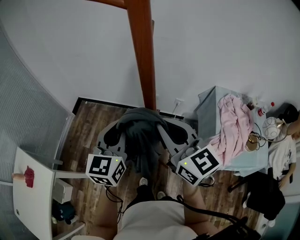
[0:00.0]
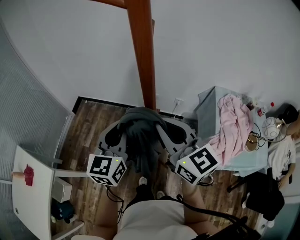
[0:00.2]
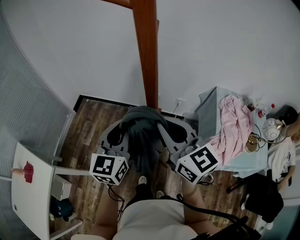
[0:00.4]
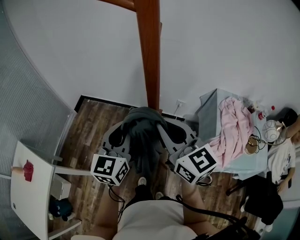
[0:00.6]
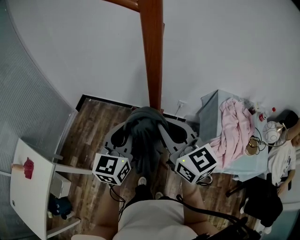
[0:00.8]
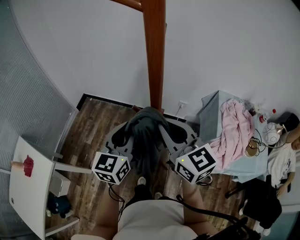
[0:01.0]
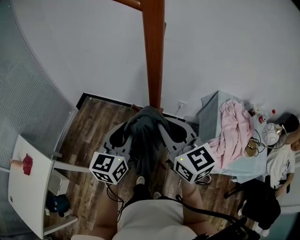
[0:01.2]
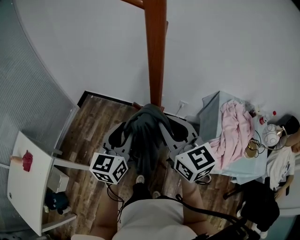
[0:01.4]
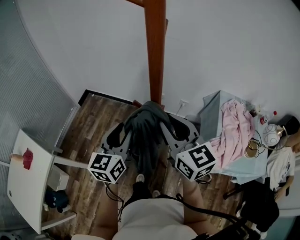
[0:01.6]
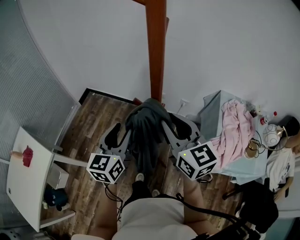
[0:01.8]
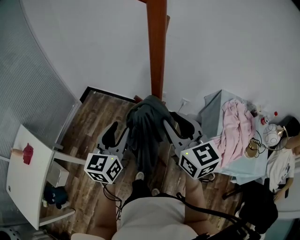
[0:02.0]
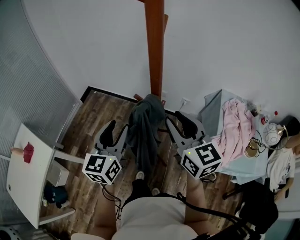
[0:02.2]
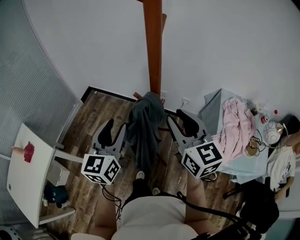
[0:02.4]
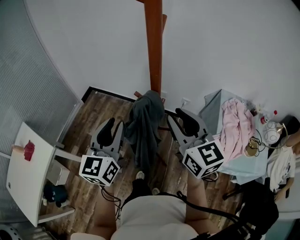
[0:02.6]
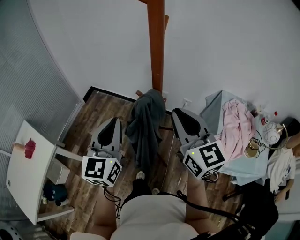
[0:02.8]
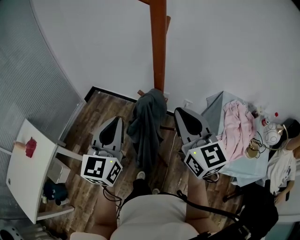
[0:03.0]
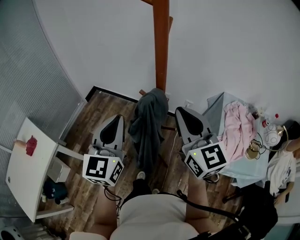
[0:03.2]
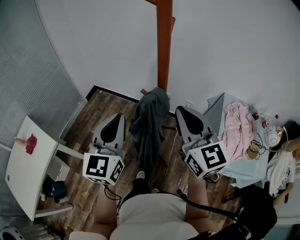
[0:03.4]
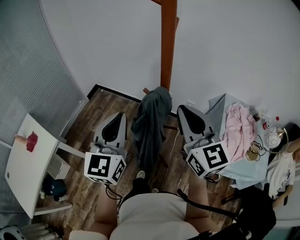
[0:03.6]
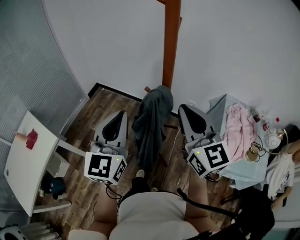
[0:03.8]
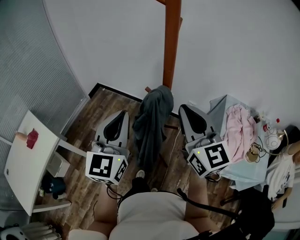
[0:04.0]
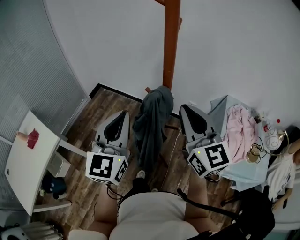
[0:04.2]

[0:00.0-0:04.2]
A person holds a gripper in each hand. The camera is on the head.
0:00.0 to 0:01.4: The left gripper opens up.
0:01.4 to 0:02.8: The left gripper heads upward, covering approximately 5 cm, and closes.
0:02.8 to 0:04.2: The grippers make only small movements.

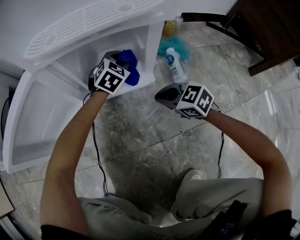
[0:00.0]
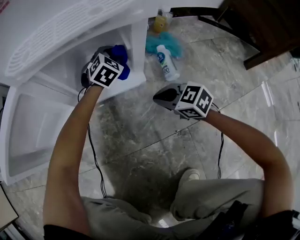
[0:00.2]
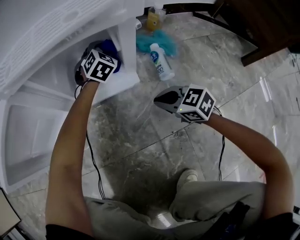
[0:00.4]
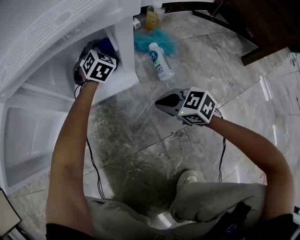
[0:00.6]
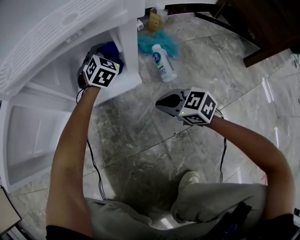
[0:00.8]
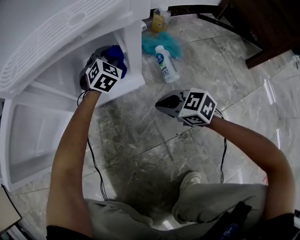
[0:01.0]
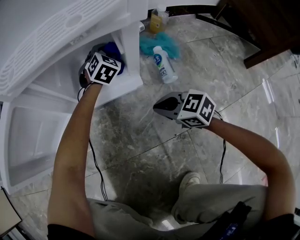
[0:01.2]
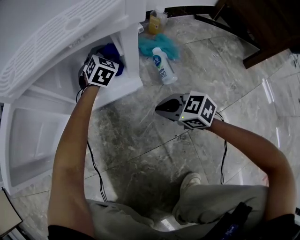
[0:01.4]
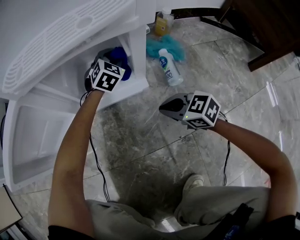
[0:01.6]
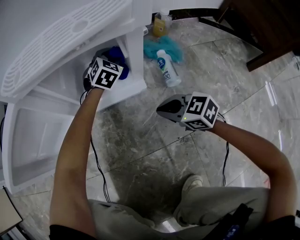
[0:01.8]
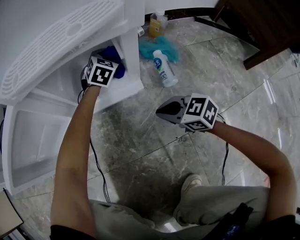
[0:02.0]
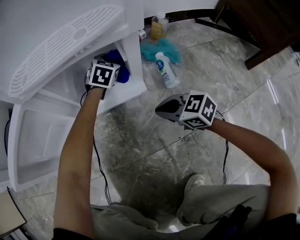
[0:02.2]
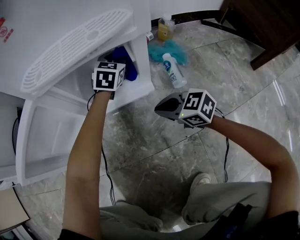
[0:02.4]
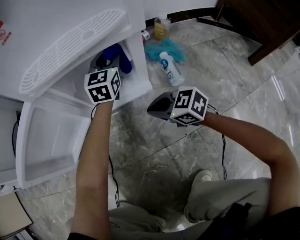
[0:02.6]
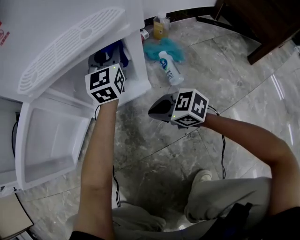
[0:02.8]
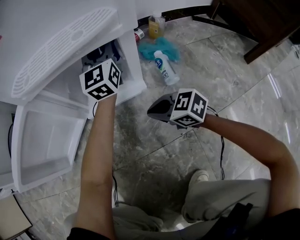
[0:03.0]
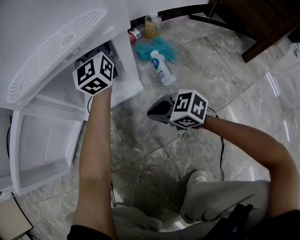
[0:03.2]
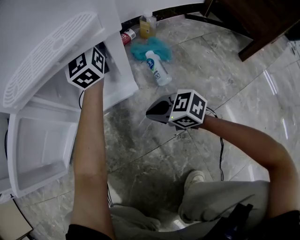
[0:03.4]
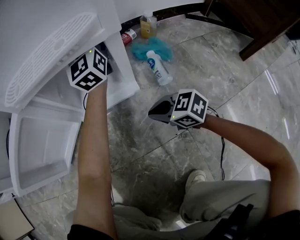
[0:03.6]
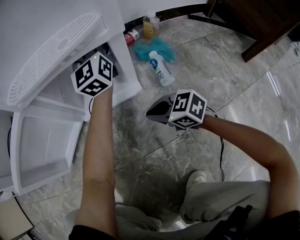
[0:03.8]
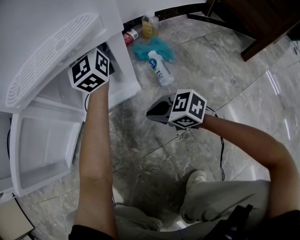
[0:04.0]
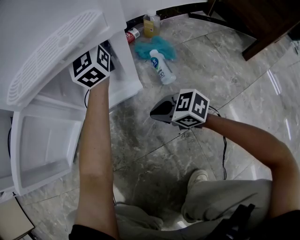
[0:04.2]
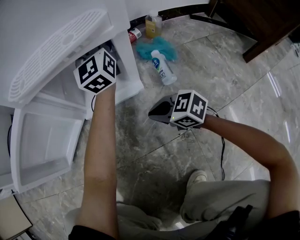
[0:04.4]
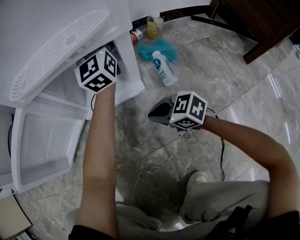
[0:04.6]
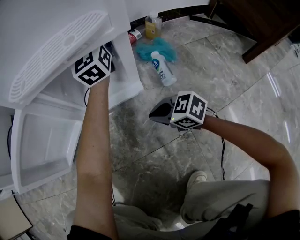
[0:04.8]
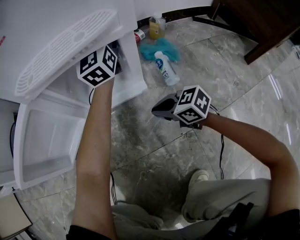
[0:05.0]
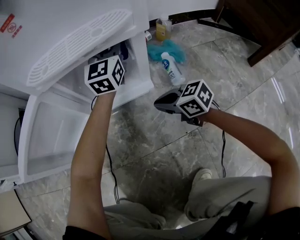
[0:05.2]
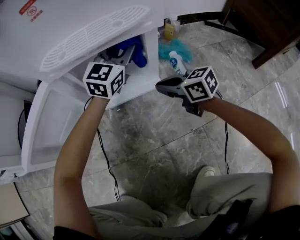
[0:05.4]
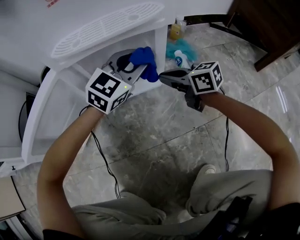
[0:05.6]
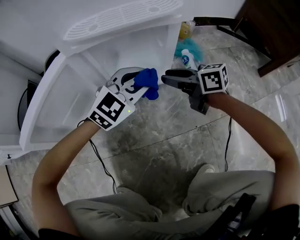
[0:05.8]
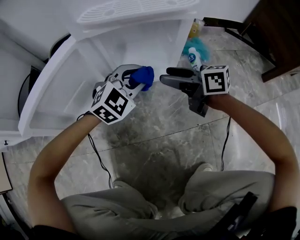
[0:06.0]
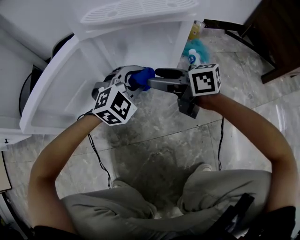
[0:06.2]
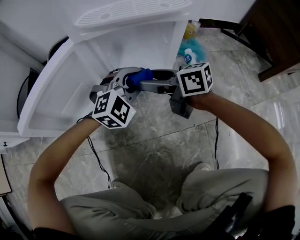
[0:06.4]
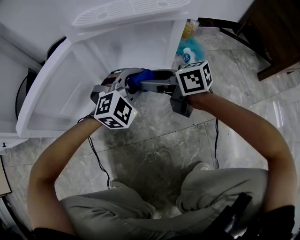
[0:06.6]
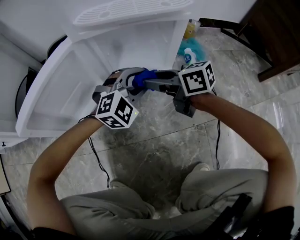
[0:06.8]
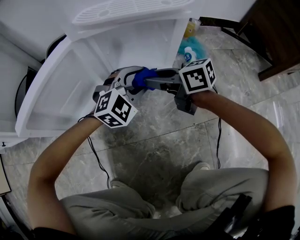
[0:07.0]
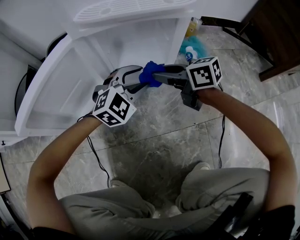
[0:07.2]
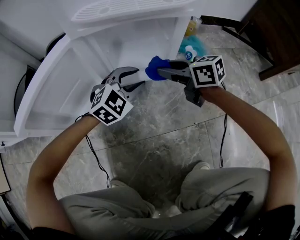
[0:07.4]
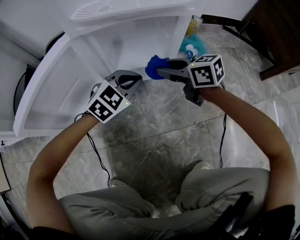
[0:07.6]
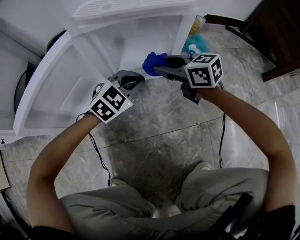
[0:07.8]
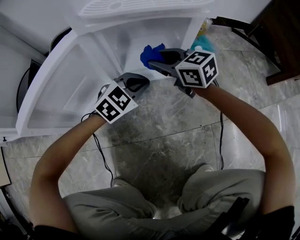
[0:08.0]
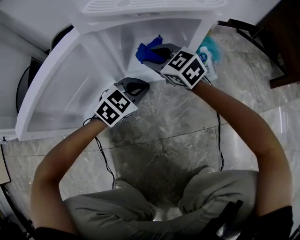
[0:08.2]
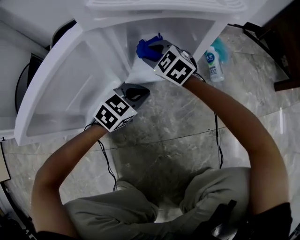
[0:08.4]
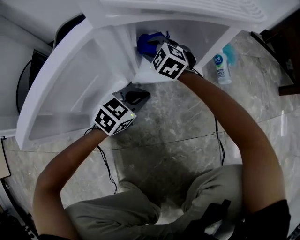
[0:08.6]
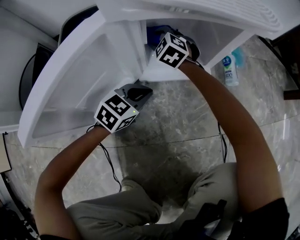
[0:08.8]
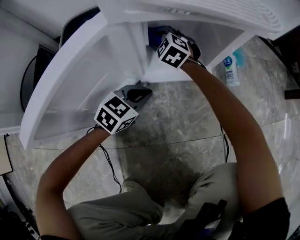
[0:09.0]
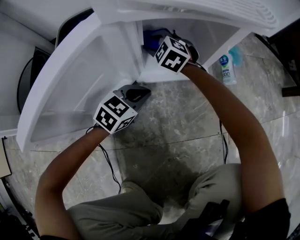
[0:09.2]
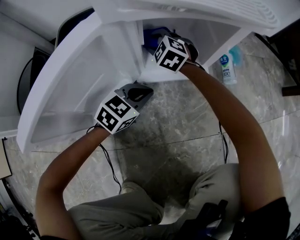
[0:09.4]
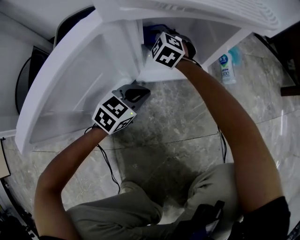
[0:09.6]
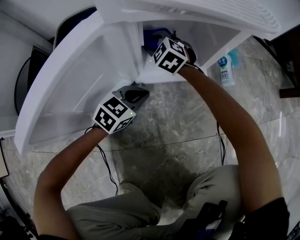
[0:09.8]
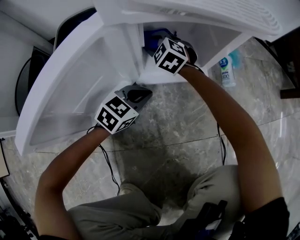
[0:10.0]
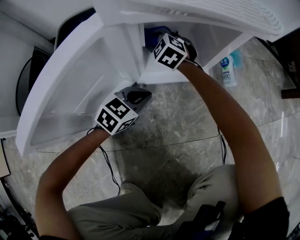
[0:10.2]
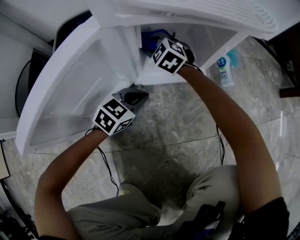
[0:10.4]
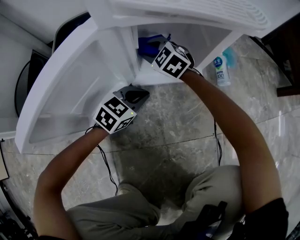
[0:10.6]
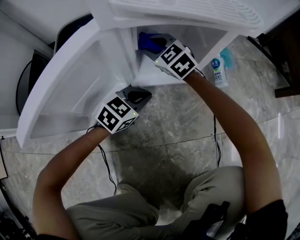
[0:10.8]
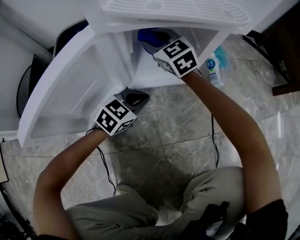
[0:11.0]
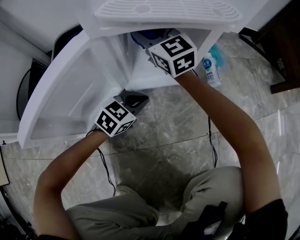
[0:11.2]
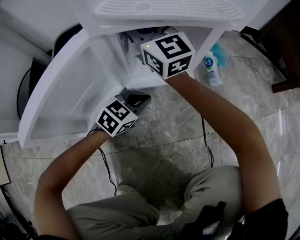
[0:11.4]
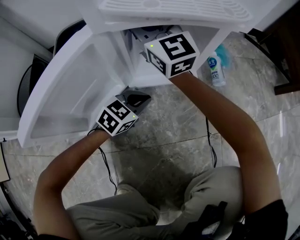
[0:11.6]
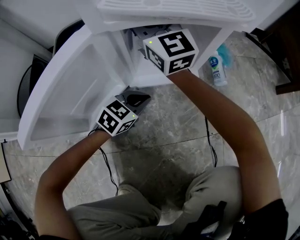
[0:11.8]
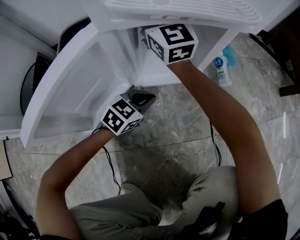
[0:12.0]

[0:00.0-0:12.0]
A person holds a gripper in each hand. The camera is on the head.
0:00.0 to 0:01.6: The left gripper heads forward, covering about 5 cm.
0:01.6 to 0:03.0: The left gripper is displaced upward by approximately 20 cm, and tips its fingers upward by roughly 40 degrees.
0:03.0 to 0:04.4: The grippers move only a little.
0:04.4 to 0:06.0: The right gripper moves upward, roughly 10 cm, swivels roughly 30 degrees, and opens up. Meanwhile the left gripper shifts by roughly 25 cm, and tips its fingers downward by approximately 40 degrees.
0:06.0 to 0:07.6: The right gripper closes its fingers. Meanwhile the left gripper closes up.
0:07.6 to 0:09.0: The right gripper travels to the left, forward and downward by about 25 cm, and rotates around the line of its fingers by about 50 degrees, counterclockwise from behind, while the left gripper goes roughly 10 cm to the left and downward, and rotates approximately 30 degrees.
0:09.0 to 0:10.4: The grippers make only small movements.
0:10.4 to 0:12.0: The right gripper goes roughly 25 cm upward, and tilts its fingers approximately 50 degrees upward.

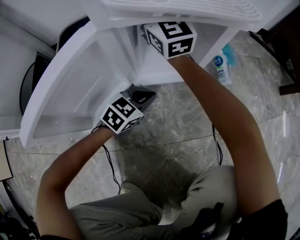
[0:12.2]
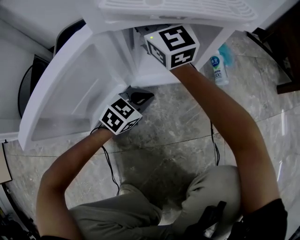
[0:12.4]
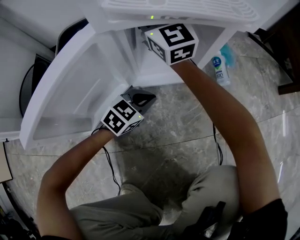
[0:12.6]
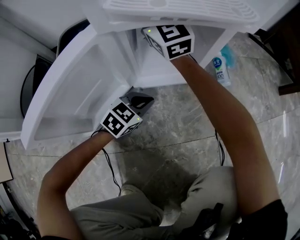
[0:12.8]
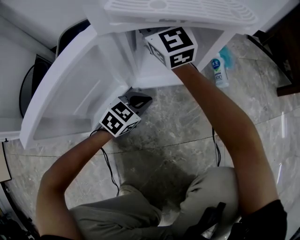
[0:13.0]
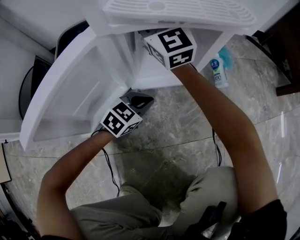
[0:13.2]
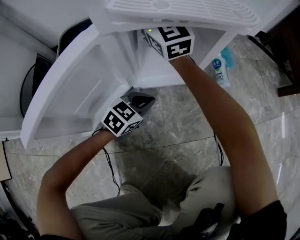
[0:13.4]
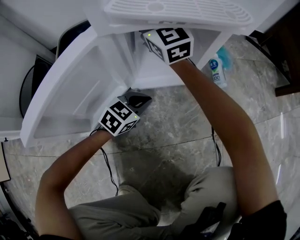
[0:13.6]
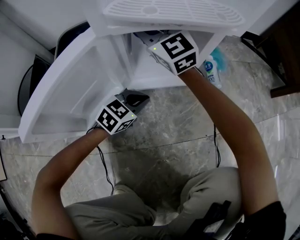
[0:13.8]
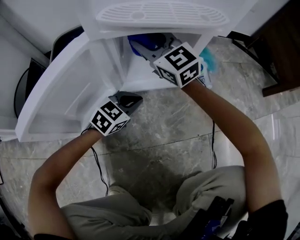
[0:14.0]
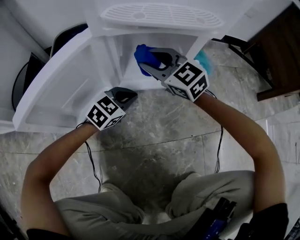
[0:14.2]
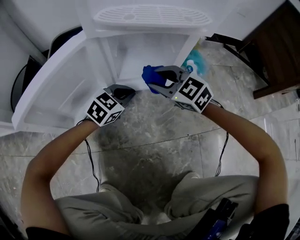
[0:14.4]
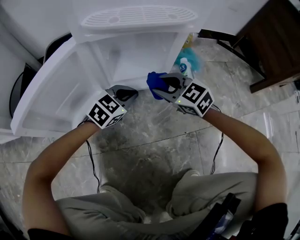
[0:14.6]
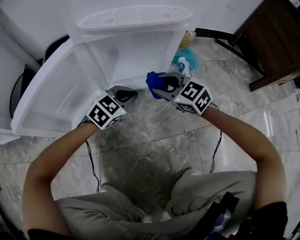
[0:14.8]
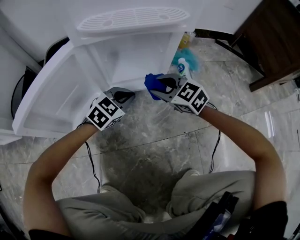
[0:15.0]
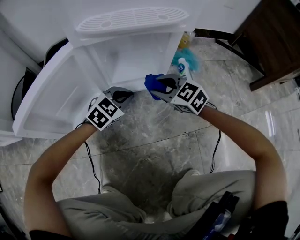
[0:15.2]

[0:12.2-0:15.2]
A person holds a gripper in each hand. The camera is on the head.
0:12.2 to 0:13.8: The grippers stay close to where they were, moving slightly.
0:13.8 to 0:15.2: The right gripper goes roughly 25 cm to the right, backward and downward, and tips its fingers downward by some 30 degrees.

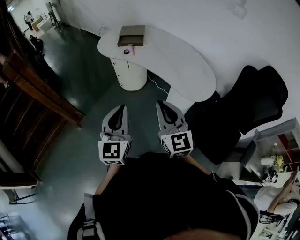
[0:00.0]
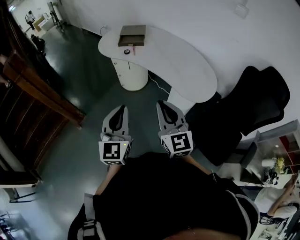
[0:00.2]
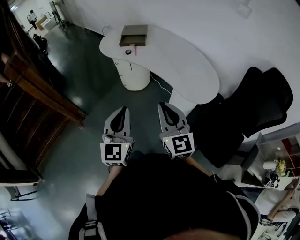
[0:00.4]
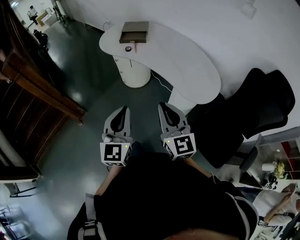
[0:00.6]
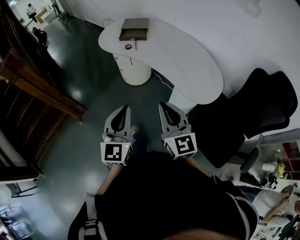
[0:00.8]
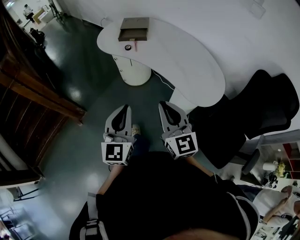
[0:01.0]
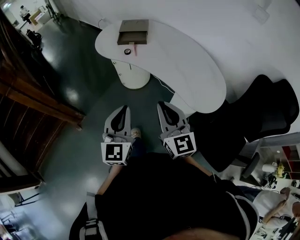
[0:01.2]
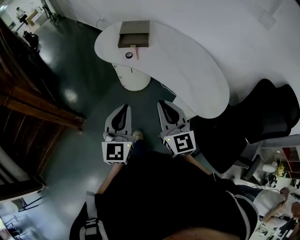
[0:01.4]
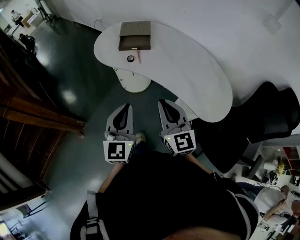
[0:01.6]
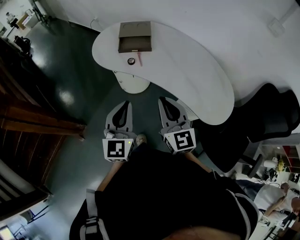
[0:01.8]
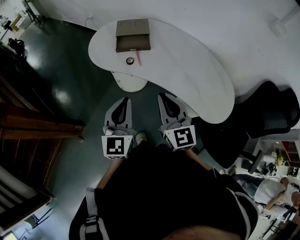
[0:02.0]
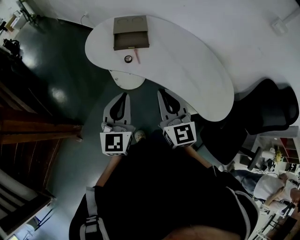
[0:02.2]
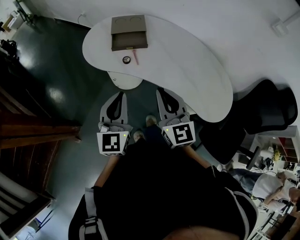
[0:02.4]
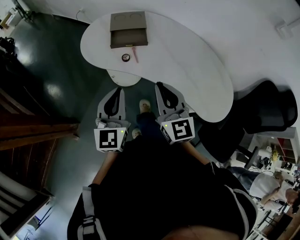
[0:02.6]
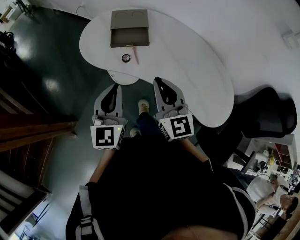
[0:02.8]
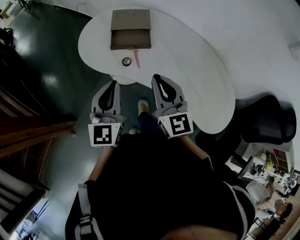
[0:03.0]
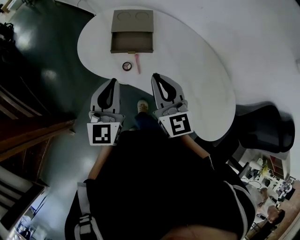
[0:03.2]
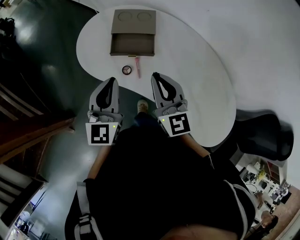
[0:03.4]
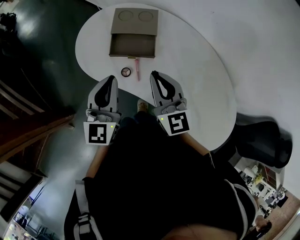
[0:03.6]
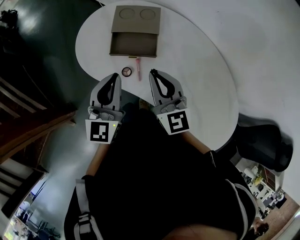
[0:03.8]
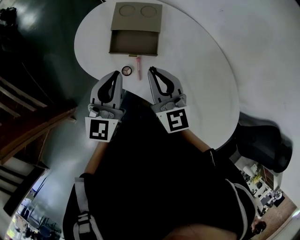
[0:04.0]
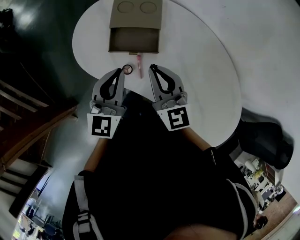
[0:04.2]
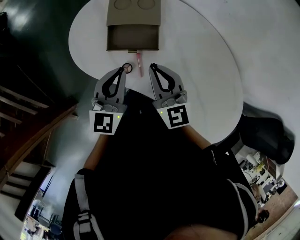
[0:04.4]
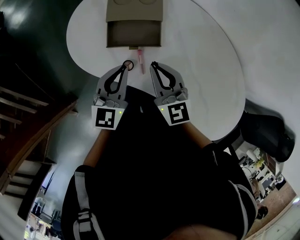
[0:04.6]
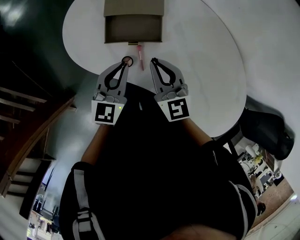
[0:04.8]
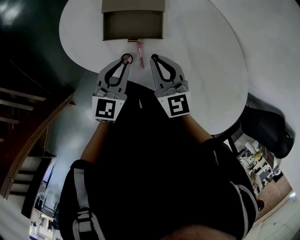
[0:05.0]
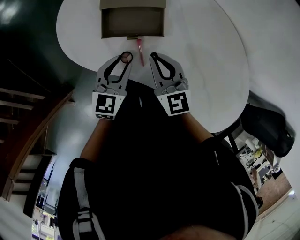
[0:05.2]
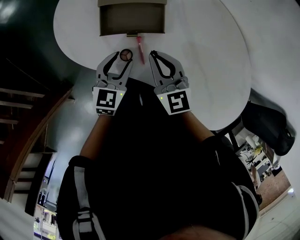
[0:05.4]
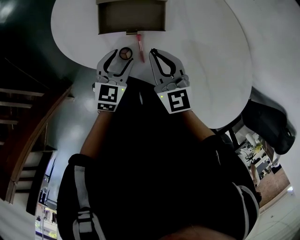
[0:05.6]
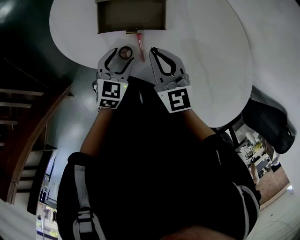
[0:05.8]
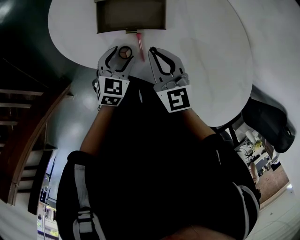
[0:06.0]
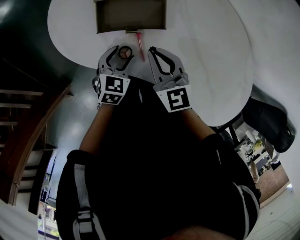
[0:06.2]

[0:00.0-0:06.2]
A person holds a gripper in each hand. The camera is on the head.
0:00.0 to 0:01.6: The two grippers go some 25 cm forward.
0:01.6 to 0:03.2: The two grippers go roughly 30 cm forward.
0:03.2 to 0:04.6: Both grippers travel together forward and downward, about 15 cm. The left gripper turns by some 20 degrees.
0:04.6 to 0:06.2: The left gripper shifts approximately 15 cm downward, rotates about 30 degrees, and opens its fingers, while the right gripper moves downward, roughly 10 cm.
